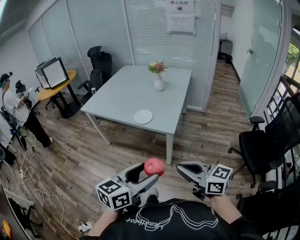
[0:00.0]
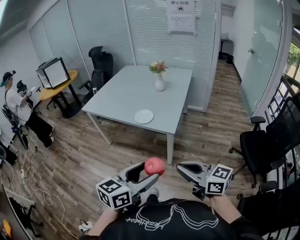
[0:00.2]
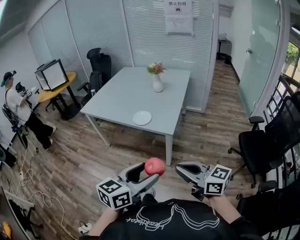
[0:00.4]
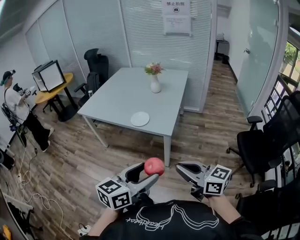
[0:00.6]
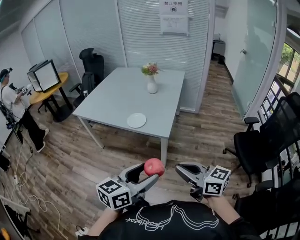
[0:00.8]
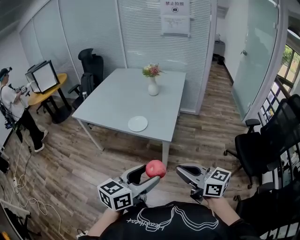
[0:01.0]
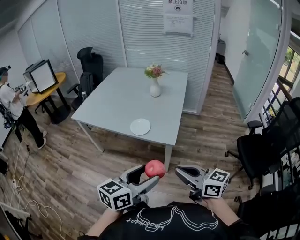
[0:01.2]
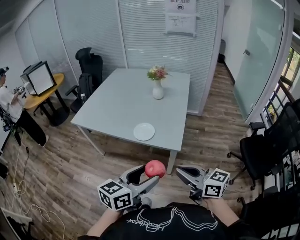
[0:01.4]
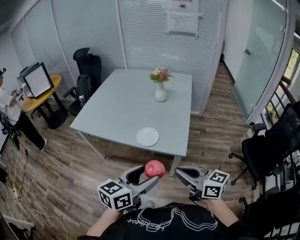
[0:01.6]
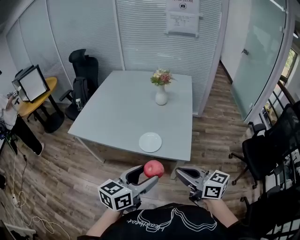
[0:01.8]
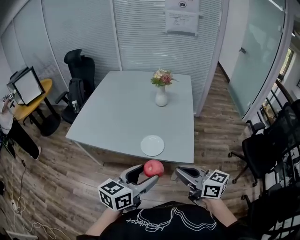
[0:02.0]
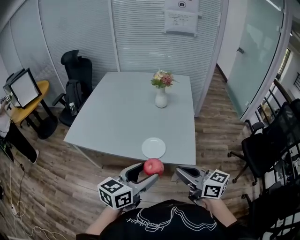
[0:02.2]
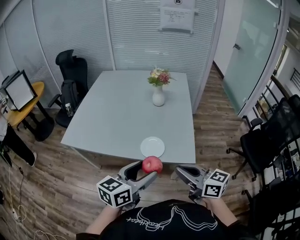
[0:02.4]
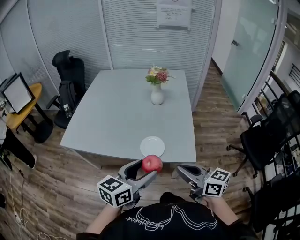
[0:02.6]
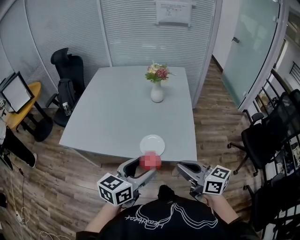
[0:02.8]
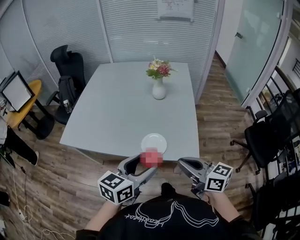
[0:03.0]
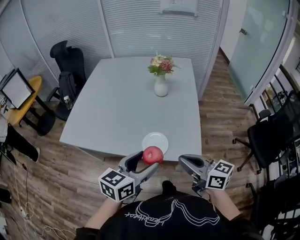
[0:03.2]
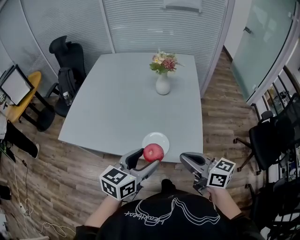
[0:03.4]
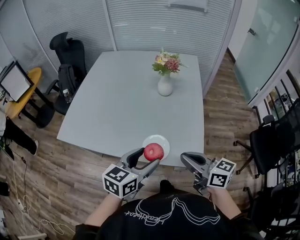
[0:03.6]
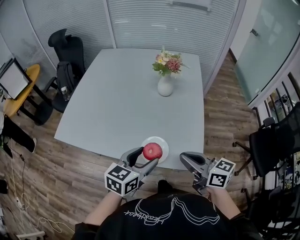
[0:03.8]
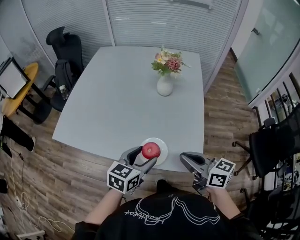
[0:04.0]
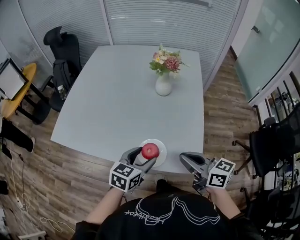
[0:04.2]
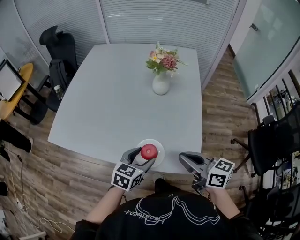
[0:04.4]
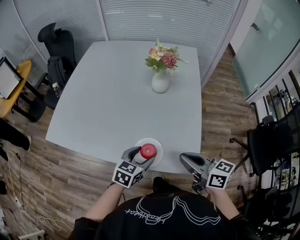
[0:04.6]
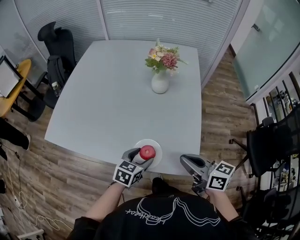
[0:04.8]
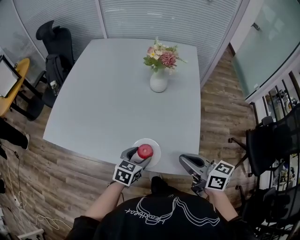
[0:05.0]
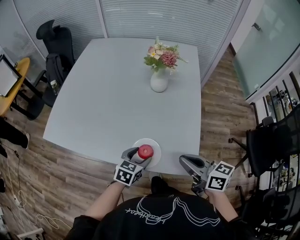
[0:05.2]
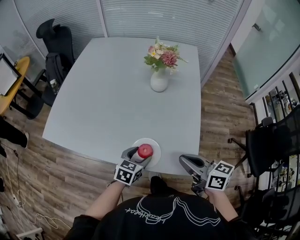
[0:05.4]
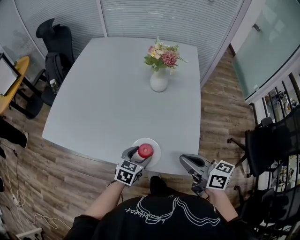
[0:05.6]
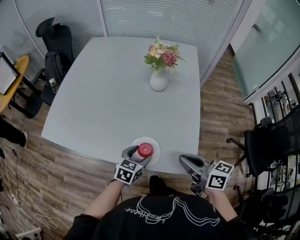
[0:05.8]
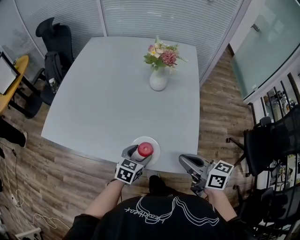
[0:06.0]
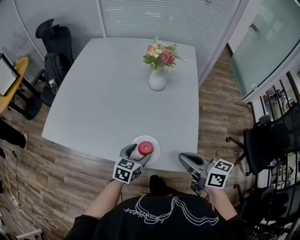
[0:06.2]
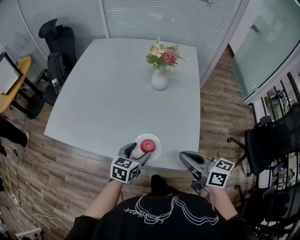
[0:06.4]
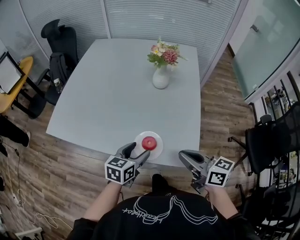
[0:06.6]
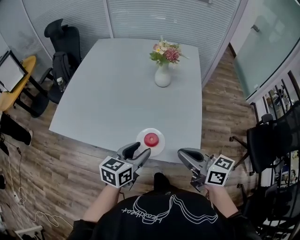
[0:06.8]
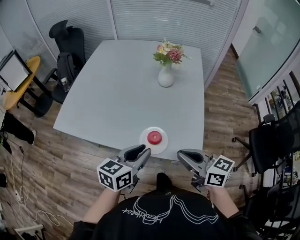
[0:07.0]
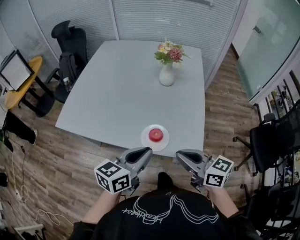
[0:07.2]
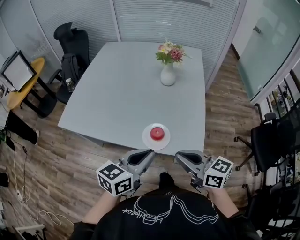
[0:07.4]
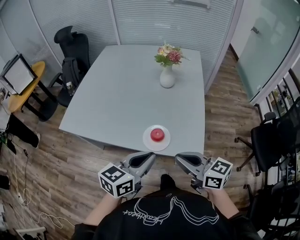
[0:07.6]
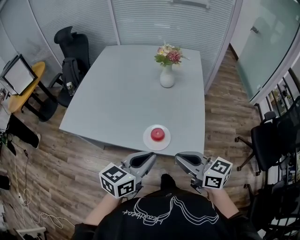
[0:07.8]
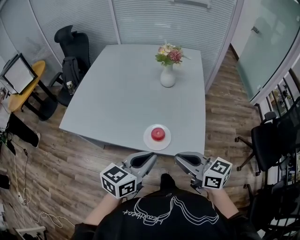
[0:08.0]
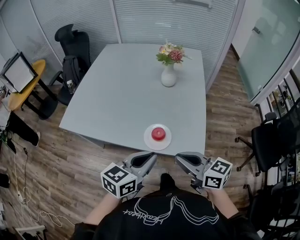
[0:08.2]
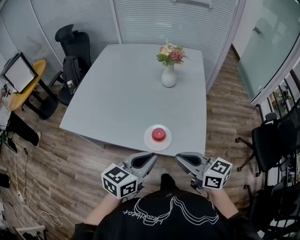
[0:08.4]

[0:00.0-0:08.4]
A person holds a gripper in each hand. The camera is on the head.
0.0 to 1.4 s: The two grippers go some 15 cm forward.
1.4 to 2.8 s: Both grippers move forward and to the left, about 20 cm.
2.8 to 4.2 s: The left gripper shifts roughly 20 cm forward and downward. Meanwhile the right gripper goes roughly 15 cm forward.
4.2 to 5.6 s: The left gripper is displaced downward by roughly 10 cm.
5.6 to 7.0 s: The left gripper goes roughly 20 cm upward and backward, changes its angle by roughly 20 degrees, and closes its fingers, while the right gripper goes approximately 10 cm backward and to the left.
7.0 to 8.4 s: The left gripper moves backward, about 5 cm.

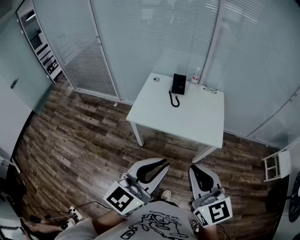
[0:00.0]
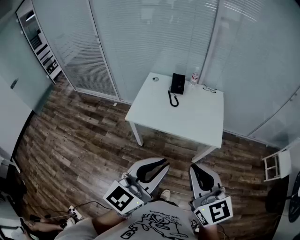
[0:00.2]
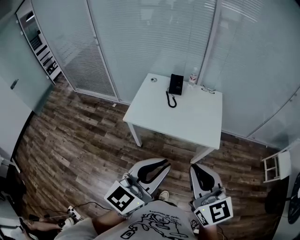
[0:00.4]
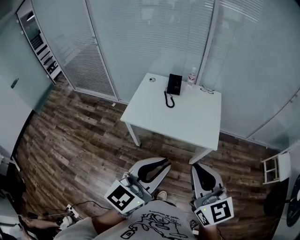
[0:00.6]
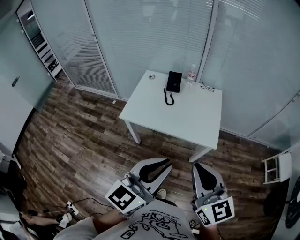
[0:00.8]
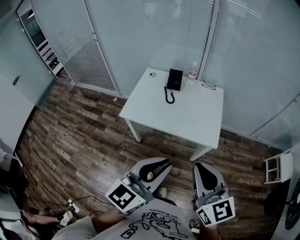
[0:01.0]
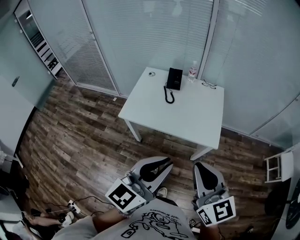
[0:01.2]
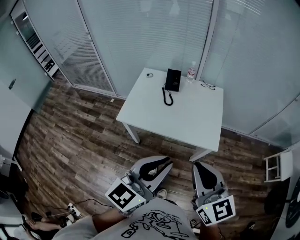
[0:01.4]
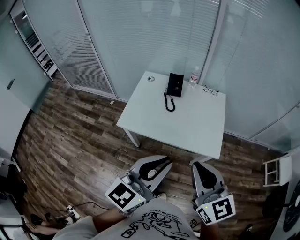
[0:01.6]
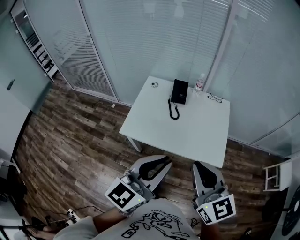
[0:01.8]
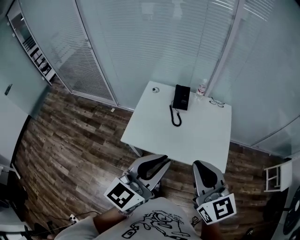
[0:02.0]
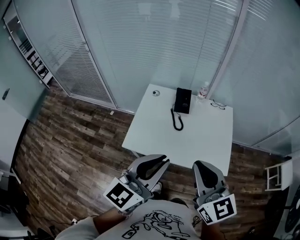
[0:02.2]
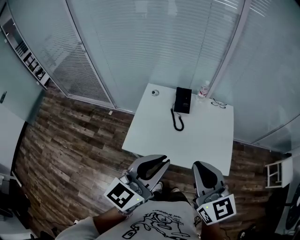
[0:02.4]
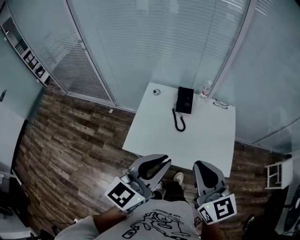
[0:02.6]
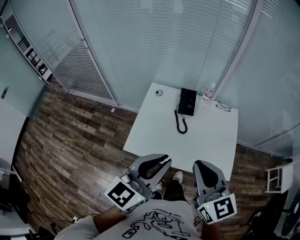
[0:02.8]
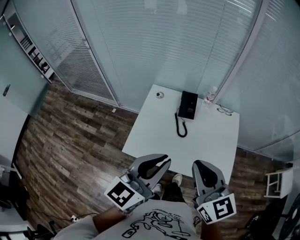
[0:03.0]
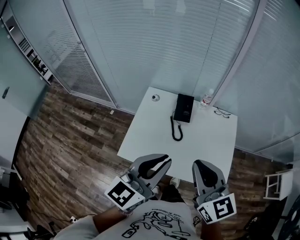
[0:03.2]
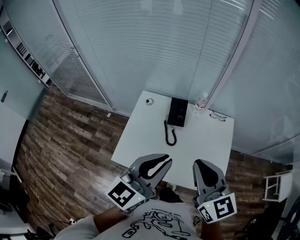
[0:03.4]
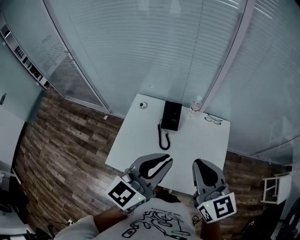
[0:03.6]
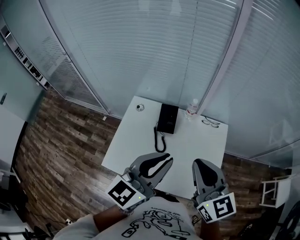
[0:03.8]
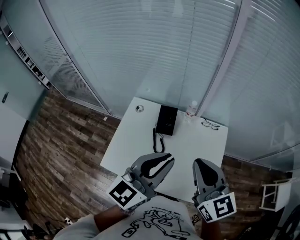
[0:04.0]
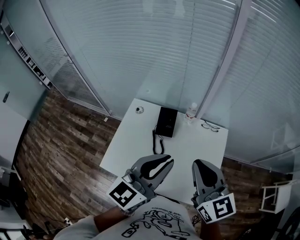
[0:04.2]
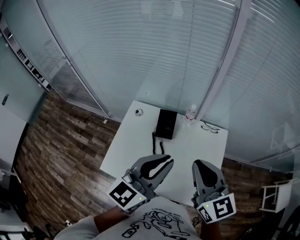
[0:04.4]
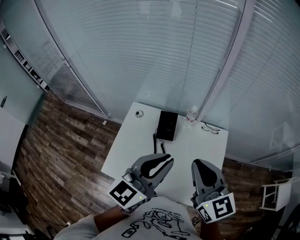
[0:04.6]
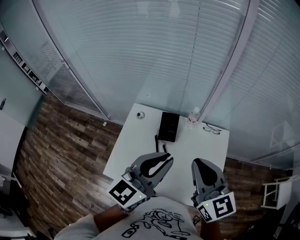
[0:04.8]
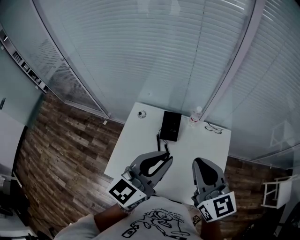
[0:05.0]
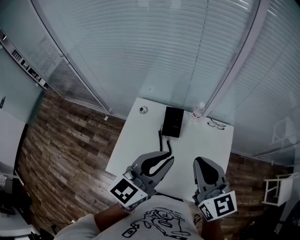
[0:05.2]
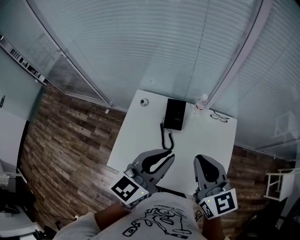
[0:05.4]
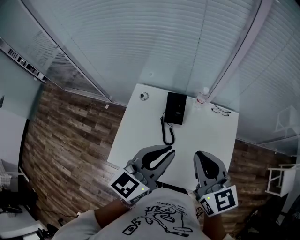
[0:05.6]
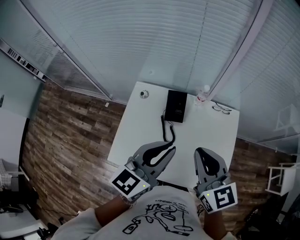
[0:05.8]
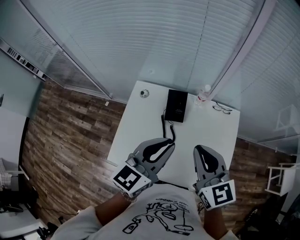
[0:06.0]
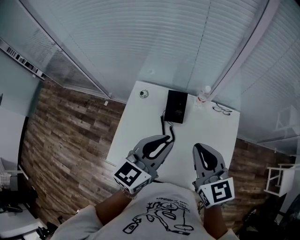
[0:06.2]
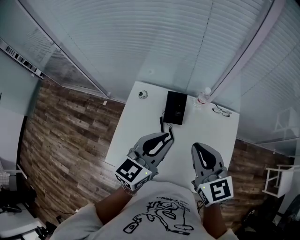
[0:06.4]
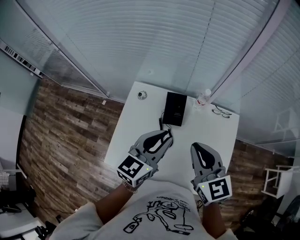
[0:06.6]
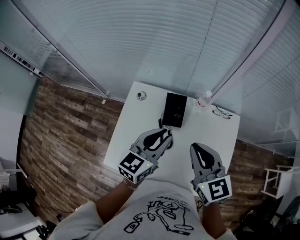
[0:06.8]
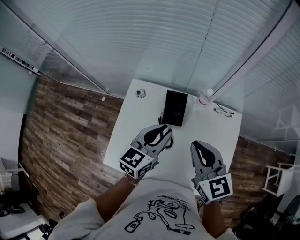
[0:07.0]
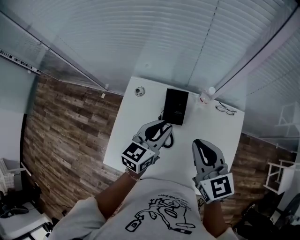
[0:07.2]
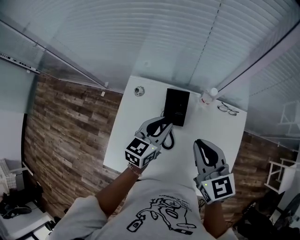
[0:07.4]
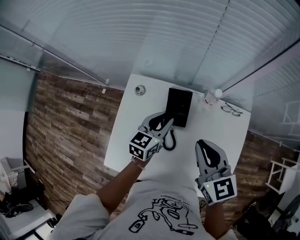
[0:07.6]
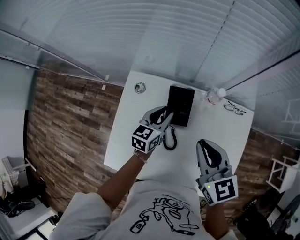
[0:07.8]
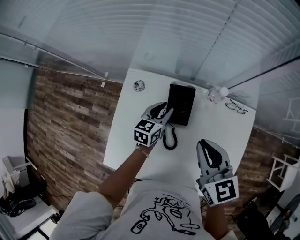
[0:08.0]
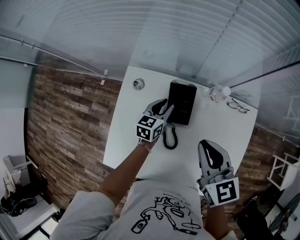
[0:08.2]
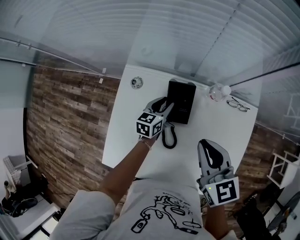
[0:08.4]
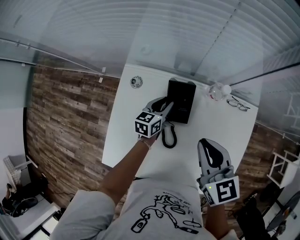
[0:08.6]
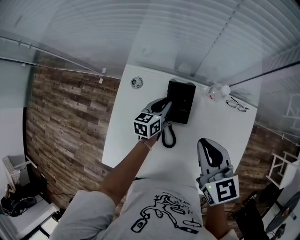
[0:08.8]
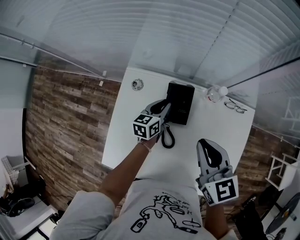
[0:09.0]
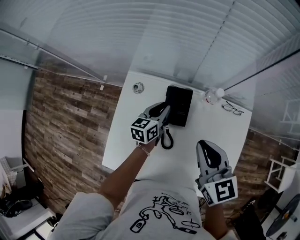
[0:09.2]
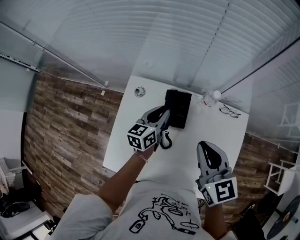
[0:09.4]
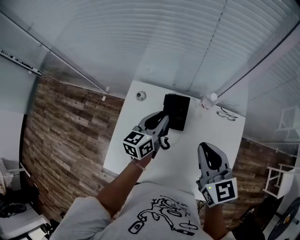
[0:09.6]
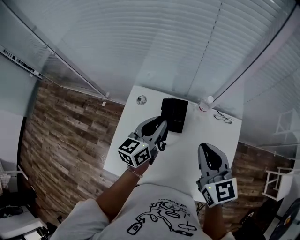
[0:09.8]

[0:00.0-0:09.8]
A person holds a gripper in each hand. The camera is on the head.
0.0 to 1.4 s: The two grippers go about 10 cm forward and to the right.
1.4 to 2.8 s: The two grippers go approximately 25 cm forward and to the left.
2.8 to 4.2 s: Both grippers travel together forward and to the right, approximately 25 cm.
4.2 to 5.6 s: The grippers both shift to the left and downward by approximately 10 cm.
5.6 to 7.0 s: The right gripper heads forward and downward, covering roughly 10 cm. The left gripper travels forward and downward by approximately 15 cm.
7.0 to 8.4 s: The left gripper shifts about 30 cm downward and forward, while the right gripper is displaced downward and forward by about 10 cm.
8.4 to 9.8 s: The left gripper heads upward, covering some 25 cm, and changes its angle by some 20 degrees, while the right gripper heads upward and backward, covering about 10 cm.

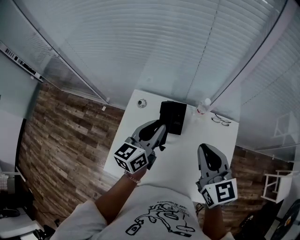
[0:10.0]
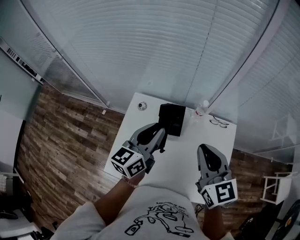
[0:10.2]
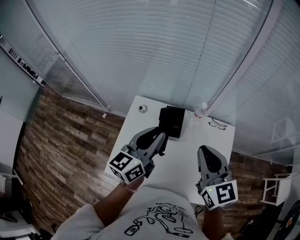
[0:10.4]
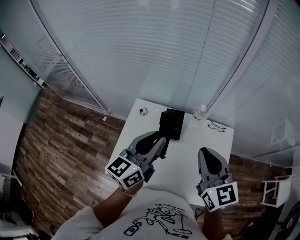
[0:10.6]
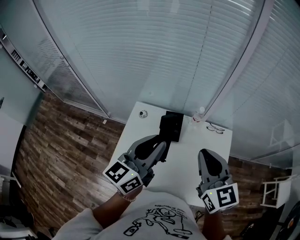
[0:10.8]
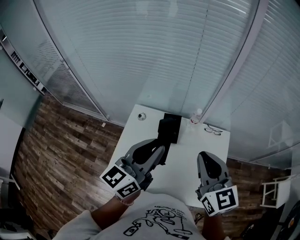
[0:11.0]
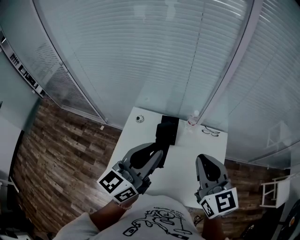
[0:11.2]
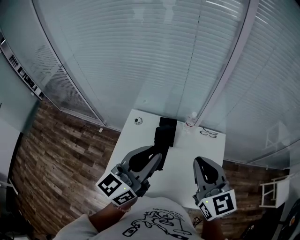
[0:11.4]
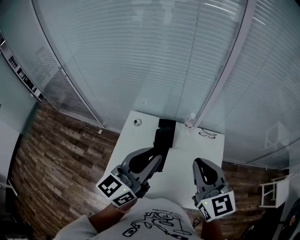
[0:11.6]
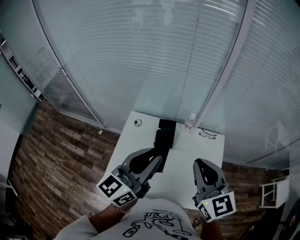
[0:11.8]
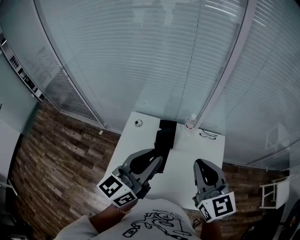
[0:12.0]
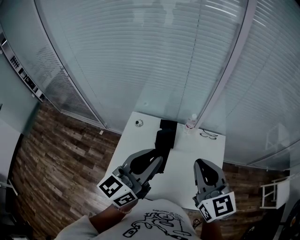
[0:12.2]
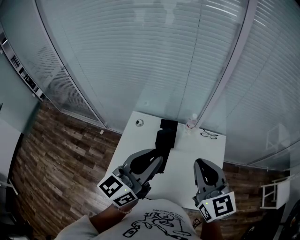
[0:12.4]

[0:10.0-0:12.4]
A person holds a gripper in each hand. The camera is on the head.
10.0 to 11.2 s: The left gripper moves upward and backward, about 20 cm, while the right gripper travels upward and backward by about 15 cm.
11.2 to 12.4 s: The grippers make only small movements.

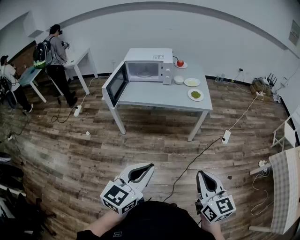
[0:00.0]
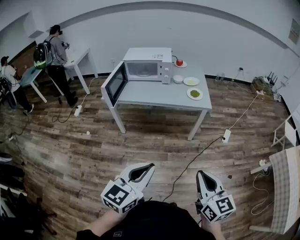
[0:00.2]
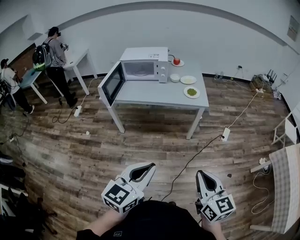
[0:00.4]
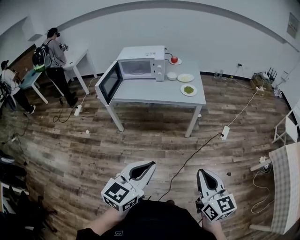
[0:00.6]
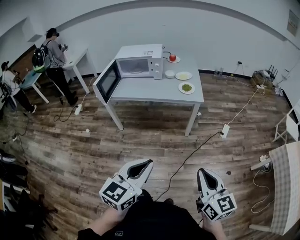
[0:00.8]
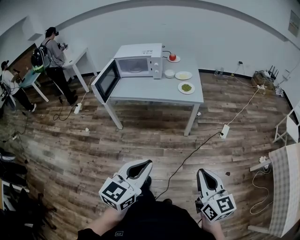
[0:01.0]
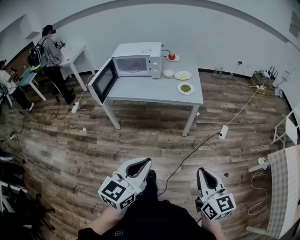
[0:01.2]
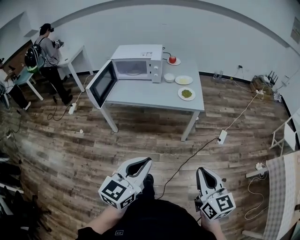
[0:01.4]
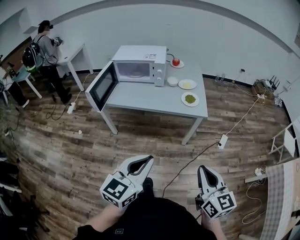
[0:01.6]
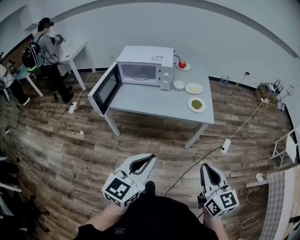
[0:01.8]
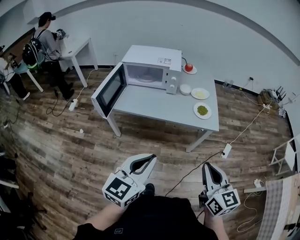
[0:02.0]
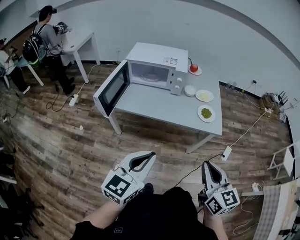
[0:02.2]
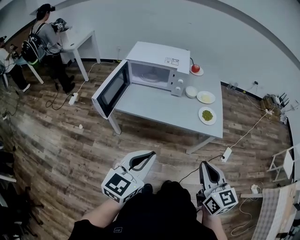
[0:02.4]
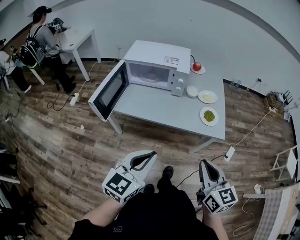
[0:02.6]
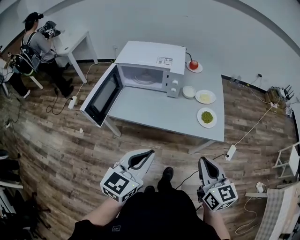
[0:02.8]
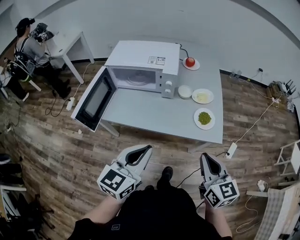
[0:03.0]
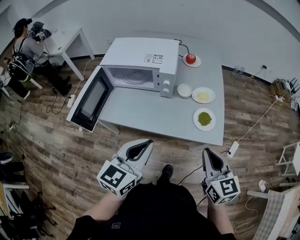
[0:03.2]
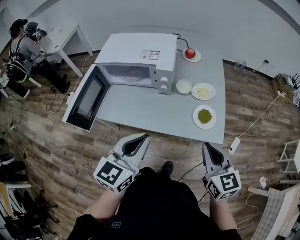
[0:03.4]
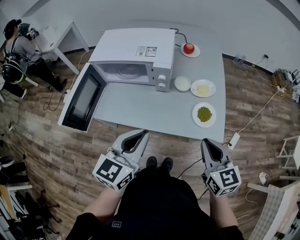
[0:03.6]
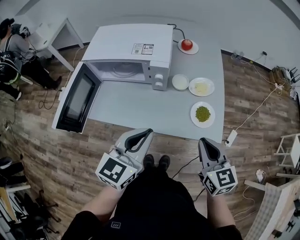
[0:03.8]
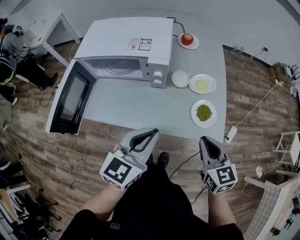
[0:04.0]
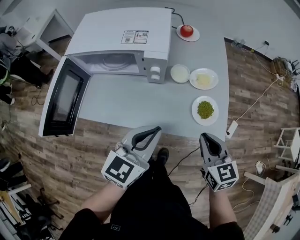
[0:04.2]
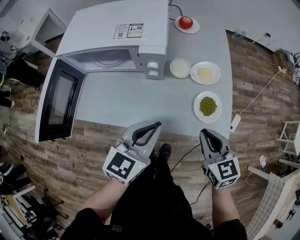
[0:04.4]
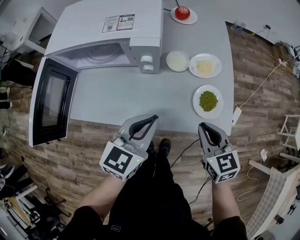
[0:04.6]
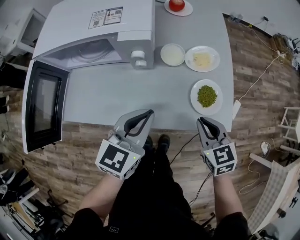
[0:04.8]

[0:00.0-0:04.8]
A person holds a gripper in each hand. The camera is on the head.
0.0 to 1.6 s: Both grippers move forward and to the right, some 15 cm.
1.6 to 3.2 s: The grippers both shift forward by approximately 35 cm.
3.2 to 4.8 s: The right gripper moves downward and forward, about 25 cm, and swivels about 20 degrees; the left gripper heads forward and downward, covering roughly 25 cm.
